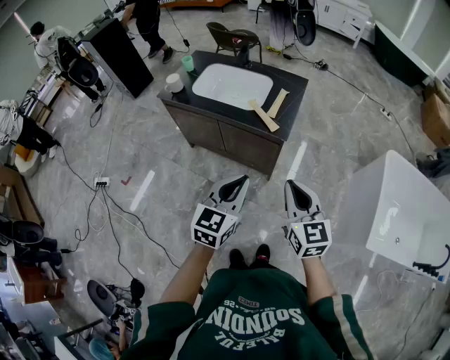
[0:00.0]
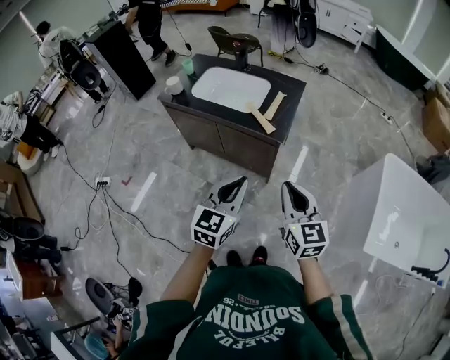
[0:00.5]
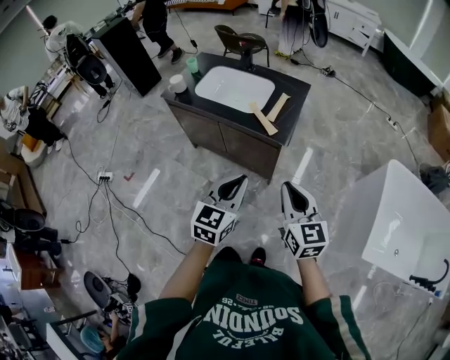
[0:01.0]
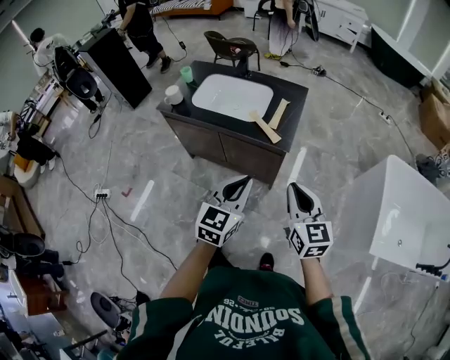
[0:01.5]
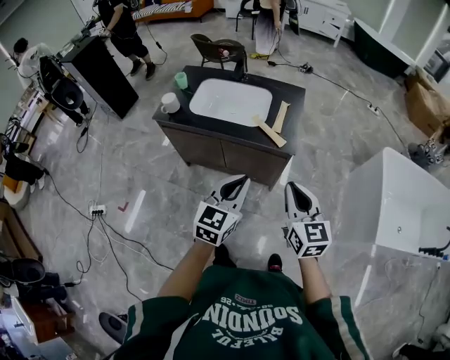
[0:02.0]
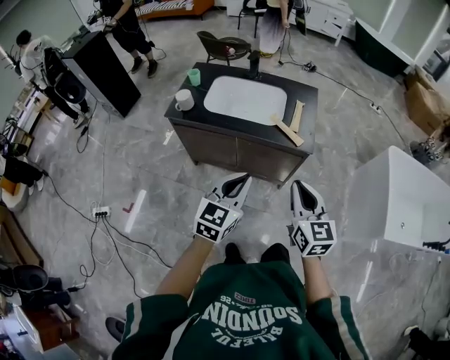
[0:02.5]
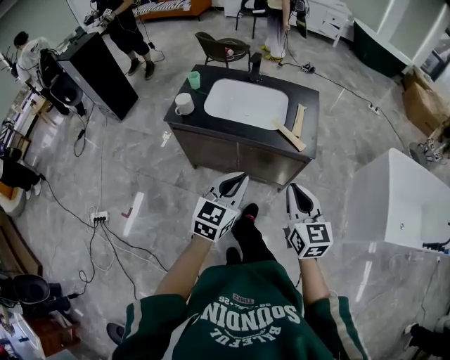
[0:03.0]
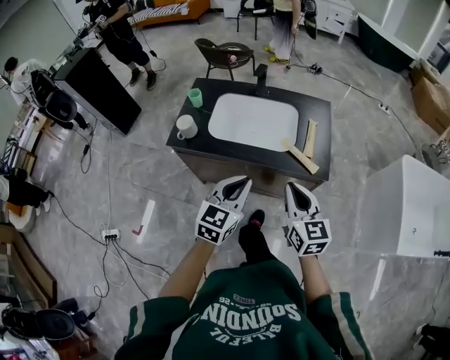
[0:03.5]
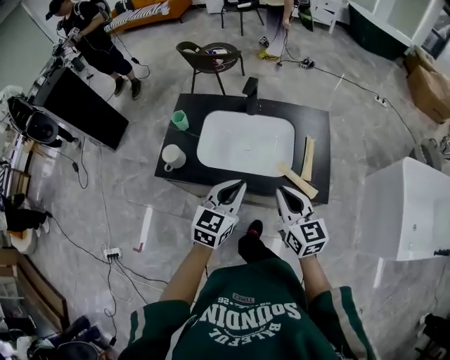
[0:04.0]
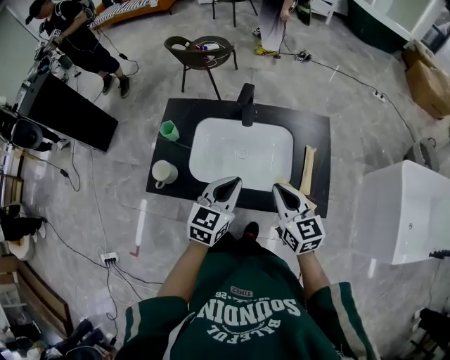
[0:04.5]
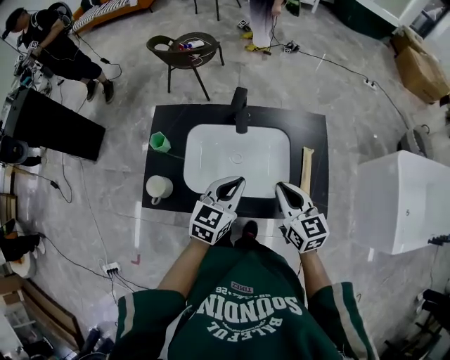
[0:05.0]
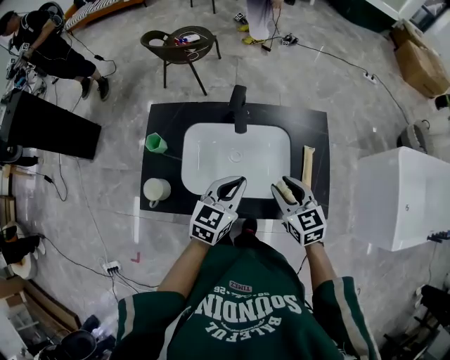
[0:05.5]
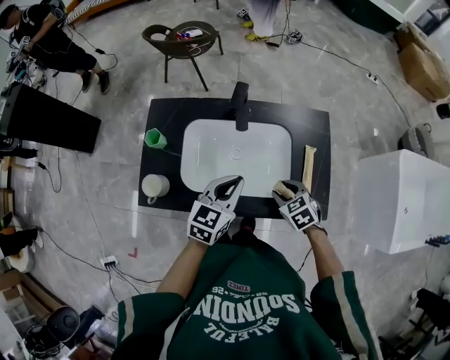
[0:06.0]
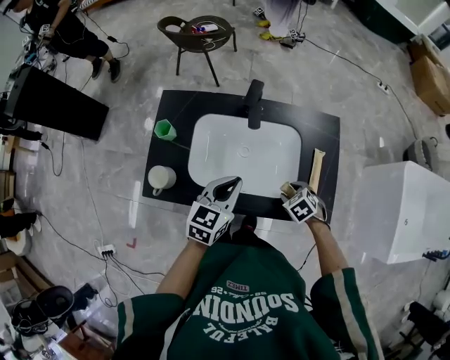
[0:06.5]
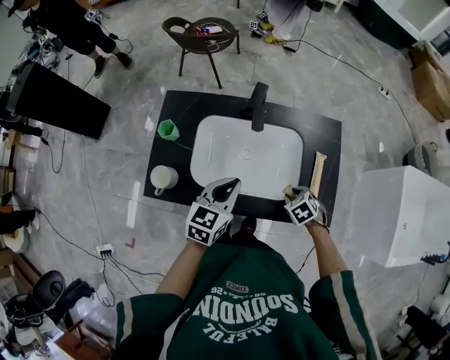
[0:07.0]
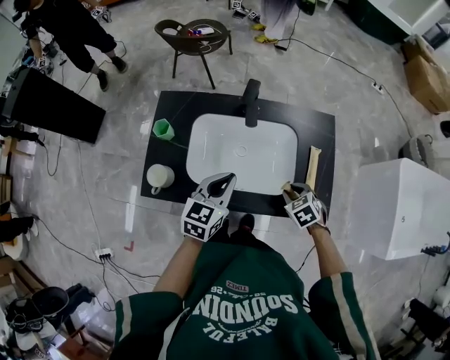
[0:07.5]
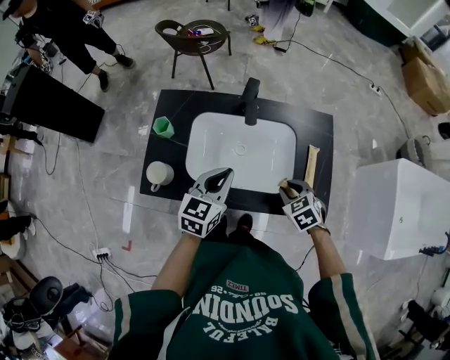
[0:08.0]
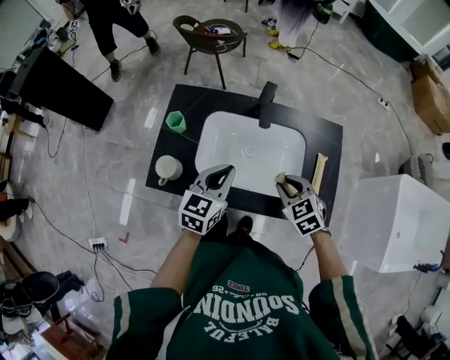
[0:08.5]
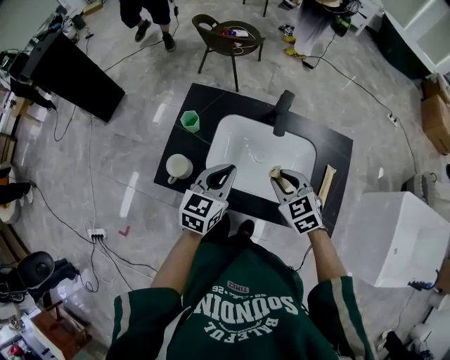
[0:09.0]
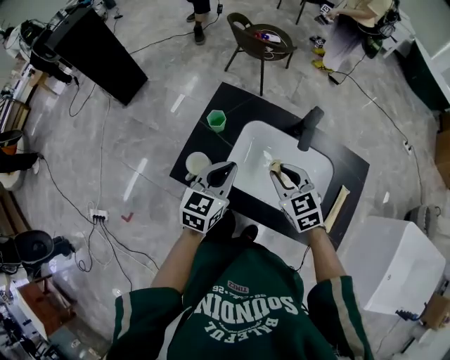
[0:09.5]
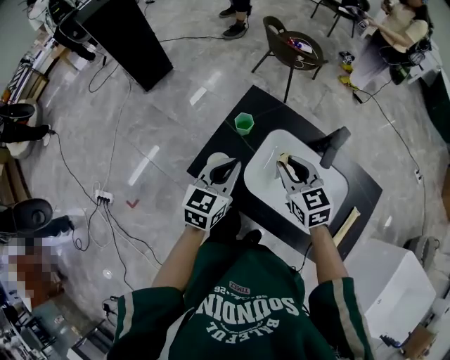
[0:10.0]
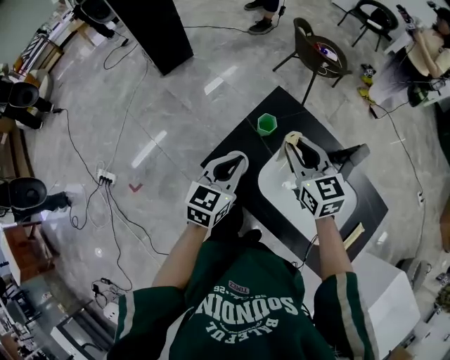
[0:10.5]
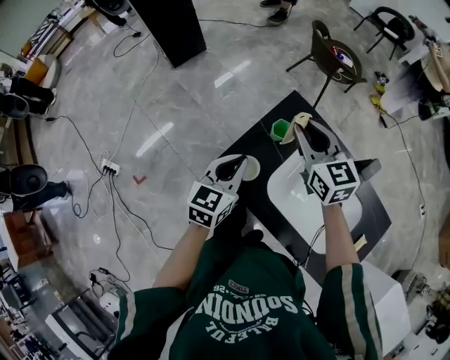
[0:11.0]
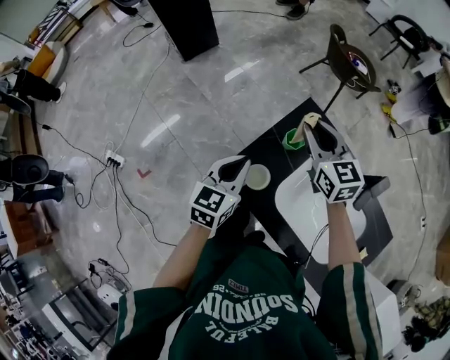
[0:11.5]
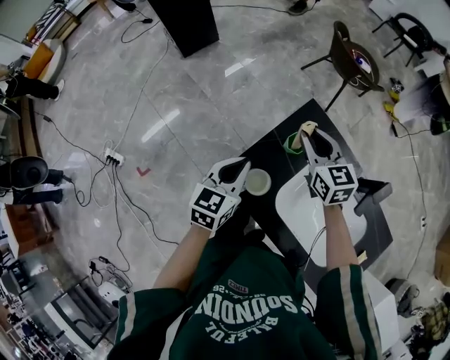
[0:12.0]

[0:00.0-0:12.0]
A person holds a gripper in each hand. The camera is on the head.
0:00.0 to 0:02.0: The grippers both shift to the left and forward by approximately 10 cm.
0:02.0 to 0:04.0: Both grippers travel together forward and to the left, roughly 35 cm.
0:04.0 to 0:06.0: The right gripper moves downward and forward, about 25 cm, angles its fingers downward, by about 40 degrees, and opens up, while the left gripper heads forward, covering roughly 15 cm.
0:06.0 to 0:08.0: The left gripper travels to the left by some 5 cm. The right gripper moves approximately 5 cm downward and comes back.
0:08.0 to 0:10.0: The left gripper moves roughly 20 cm, and rotates some 30 degrees, while the right gripper shifts by roughly 35 cm, and tips its fingers upward by roughly 30 degrees.
0:10.0 to 0:12.0: The left gripper is displaced to the left, forward and downward by about 15 cm. Meanwhile the right gripper shifts about 20 cm forward and to the left.

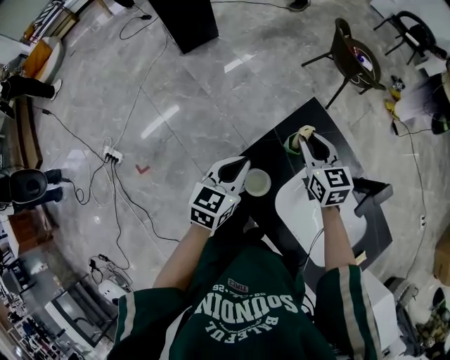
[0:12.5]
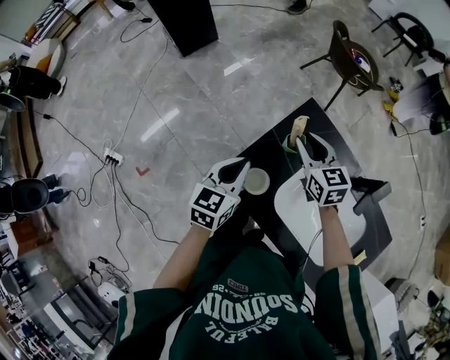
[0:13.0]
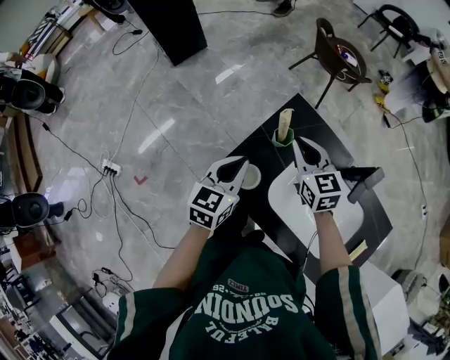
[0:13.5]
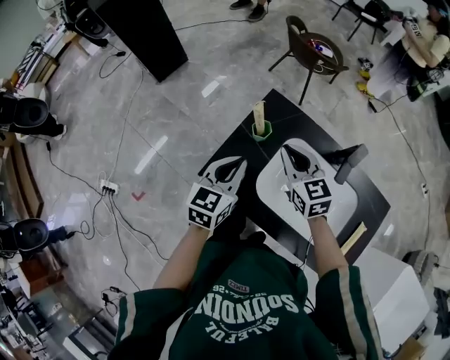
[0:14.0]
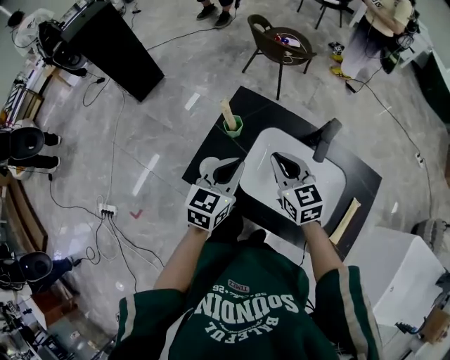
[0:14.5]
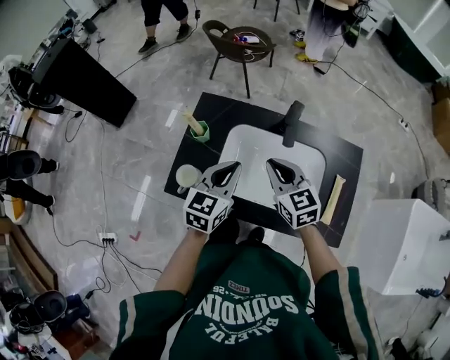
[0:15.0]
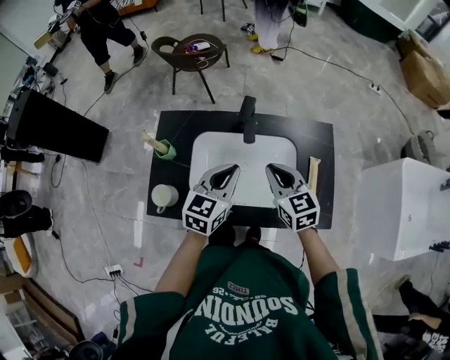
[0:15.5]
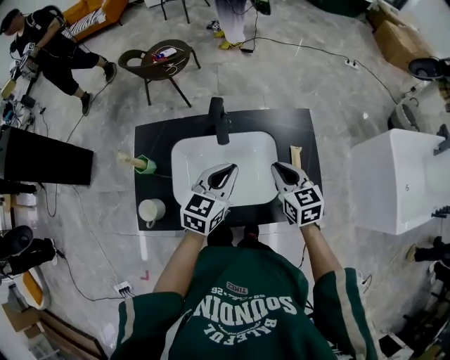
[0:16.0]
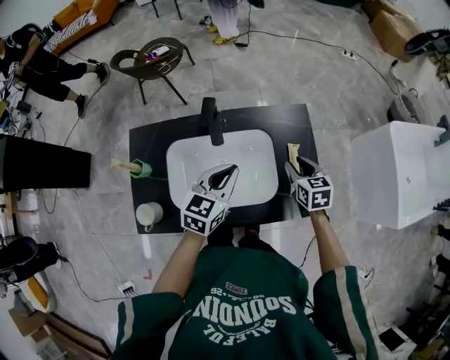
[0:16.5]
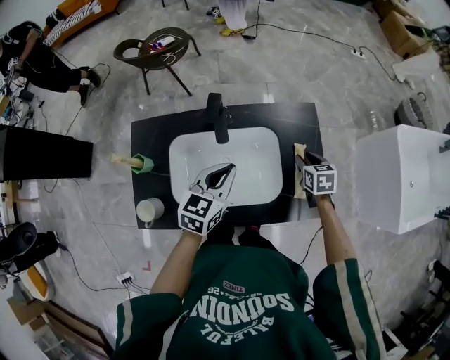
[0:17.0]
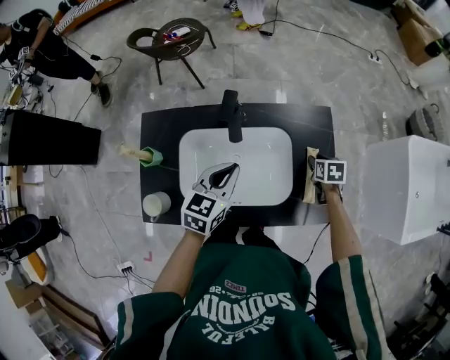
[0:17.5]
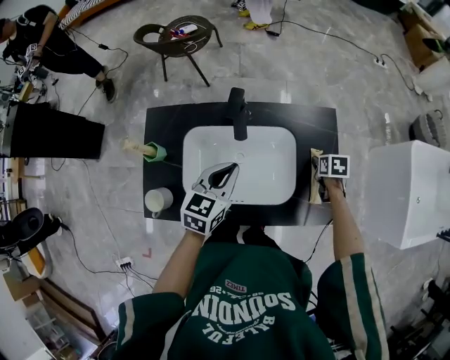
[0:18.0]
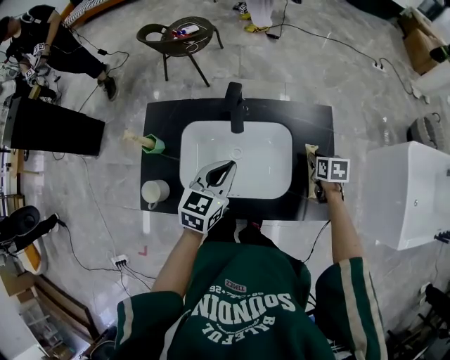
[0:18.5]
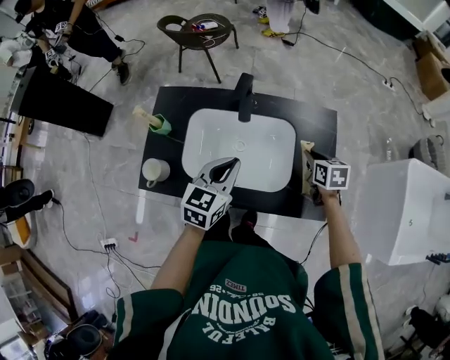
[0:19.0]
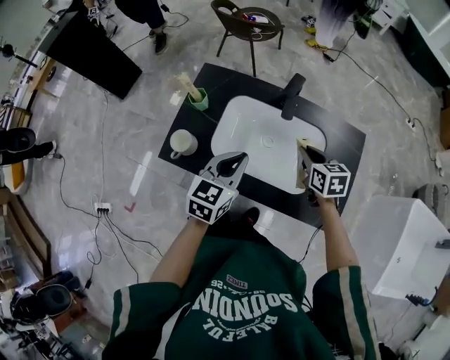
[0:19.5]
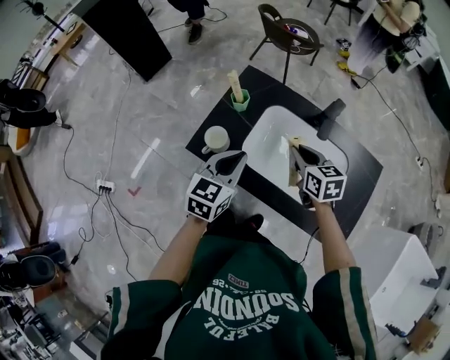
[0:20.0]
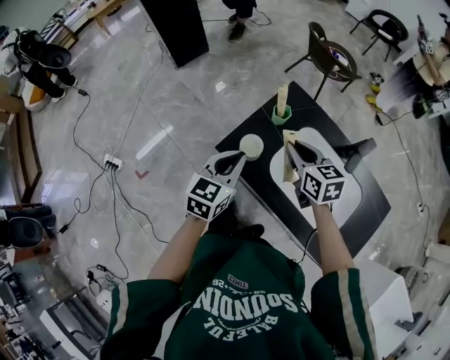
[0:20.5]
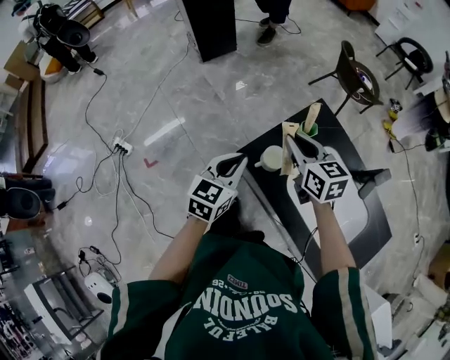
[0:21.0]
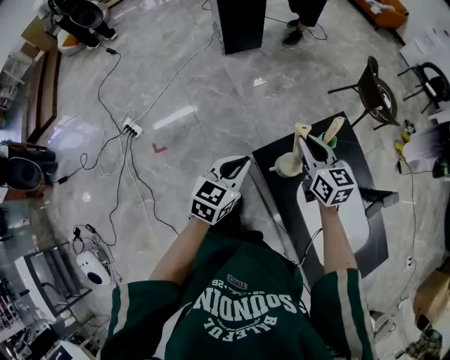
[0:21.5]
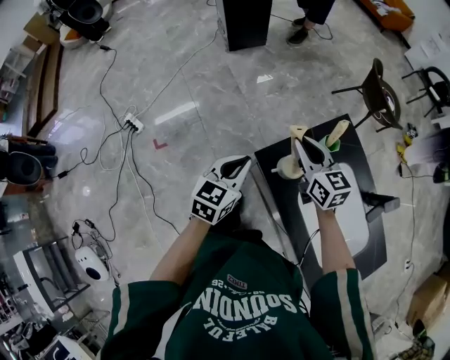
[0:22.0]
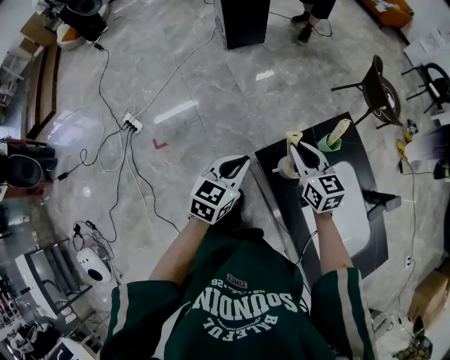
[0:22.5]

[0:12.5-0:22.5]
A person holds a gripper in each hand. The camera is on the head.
0:12.5 to 0:14.5: The left gripper is displaced to the right, backward and upward by about 20 cm; the right gripper shifts approximately 20 cm backward and to the right.
0:14.5 to 0:16.5: The left gripper ends up roughly 30 cm from where it was, and turns by about 40 degrees. Meanwhile the right gripper shifts by roughly 40 cm, turns by approximately 50 degrees, and opens.
0:16.5 to 0:18.5: The right gripper shifts roughly 10 cm downward, while the left gripper ends up roughly 5 cm from where it was.
0:18.5 to 0:20.5: The left gripper changes place by approximately 35 cm, and changes its angle by approximately 40 degrees. Meanwhile the right gripper changes place by approximately 60 cm, and turns by roughly 60 degrees.
0:20.5 to 0:22.5: The right gripper is displaced to the left and forward by some 20 cm, and rotates some 20 degrees. Meanwhile the left gripper goes approximately 15 cm to the left.

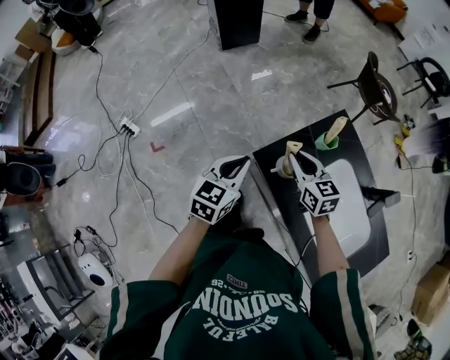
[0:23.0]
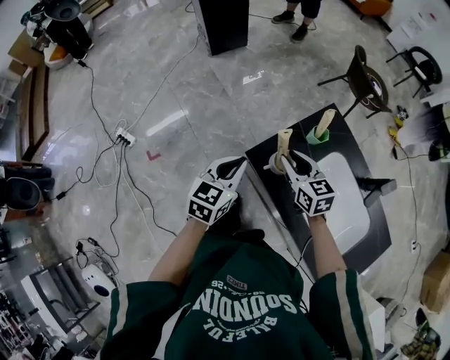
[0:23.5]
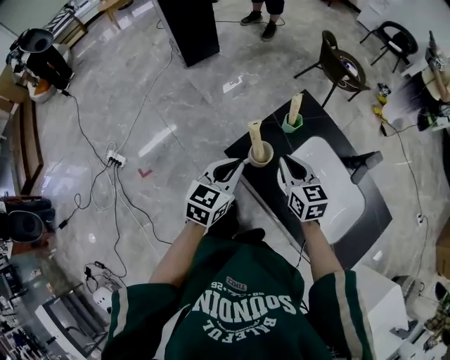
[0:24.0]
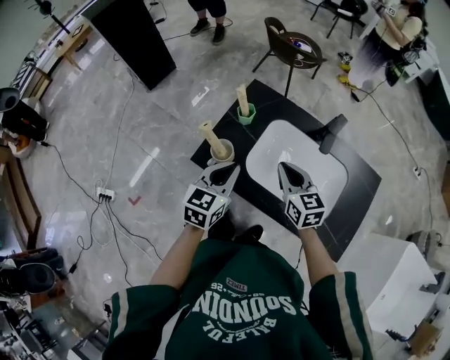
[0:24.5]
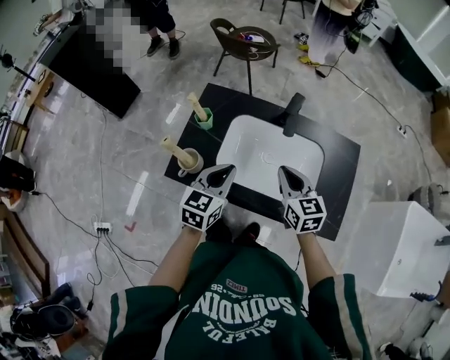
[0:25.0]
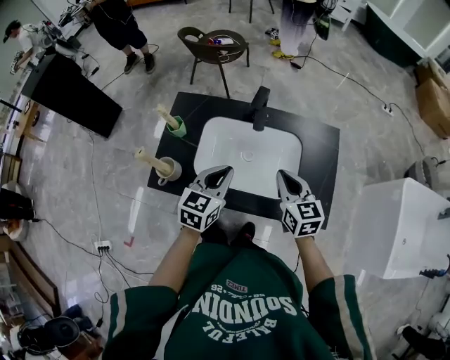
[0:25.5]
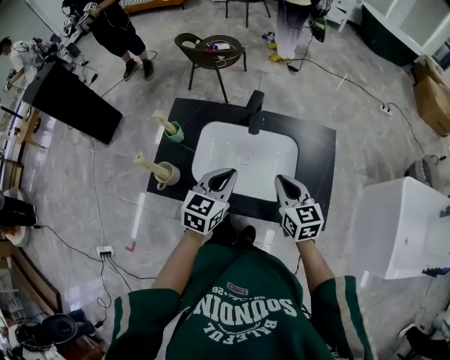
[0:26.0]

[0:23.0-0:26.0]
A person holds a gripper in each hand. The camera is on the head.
0:23.0 to 0:24.5: The right gripper shifts by approximately 25 cm, and swivels approximately 30 degrees, while the left gripper moves approximately 20 cm, and swivels roughly 20 degrees.
0:24.5 to 0:26.0: The two grippers go some 25 cm to the right. The right gripper swivels roughly 20 degrees. Meanwhile the left gripper swivels some 20 degrees.

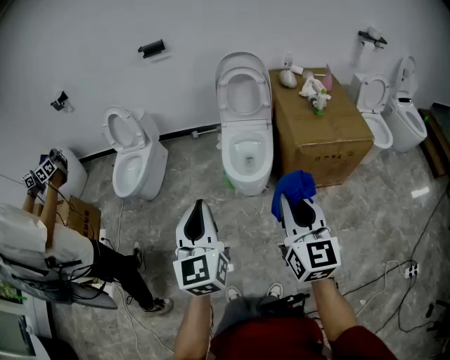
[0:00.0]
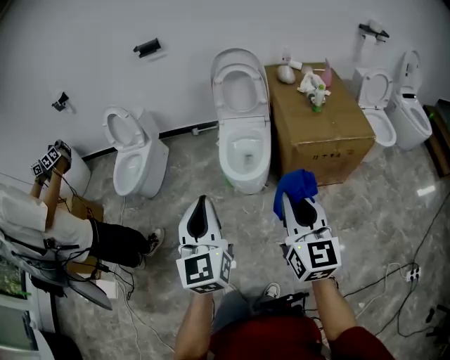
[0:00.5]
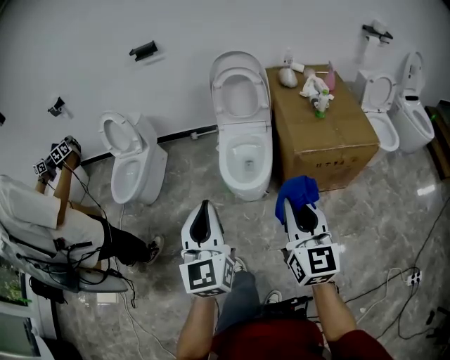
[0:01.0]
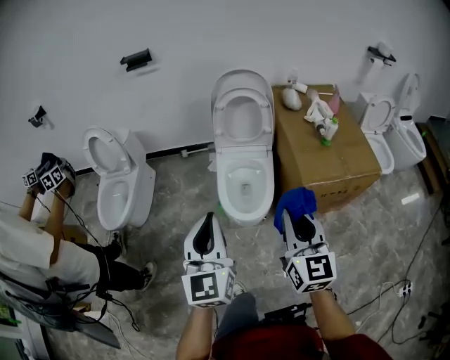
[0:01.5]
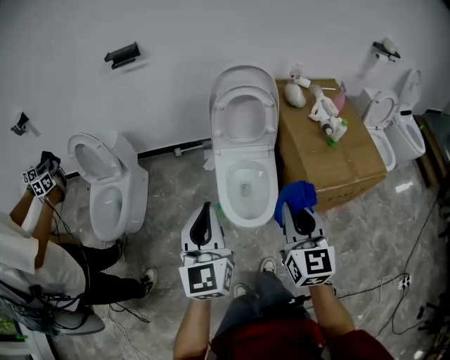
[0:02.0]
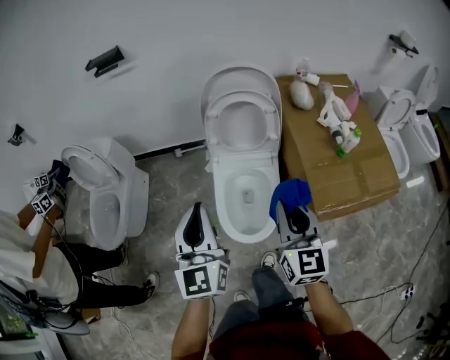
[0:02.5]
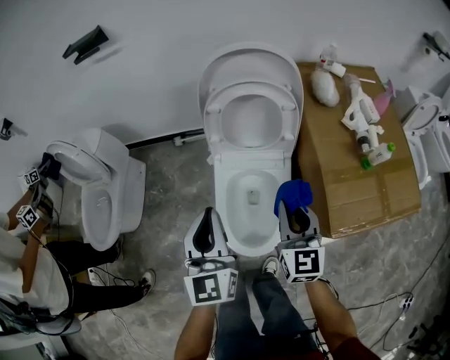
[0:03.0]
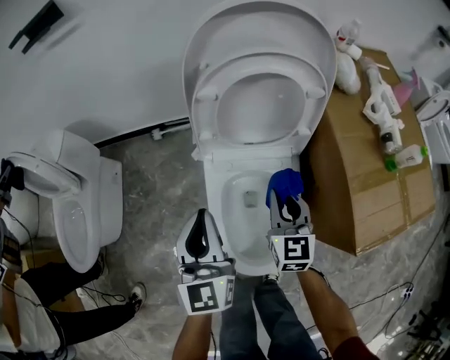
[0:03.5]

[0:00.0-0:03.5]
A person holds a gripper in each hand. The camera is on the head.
0:00.0 to 0:02.0: Both grippers travel together forward, roughly 40 cm.
0:02.0 to 0:03.5: Both grippers travel together forward and downward, roughly 50 cm.
